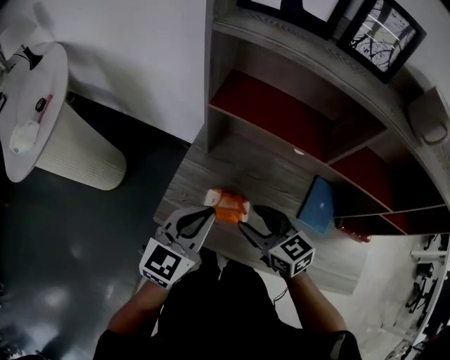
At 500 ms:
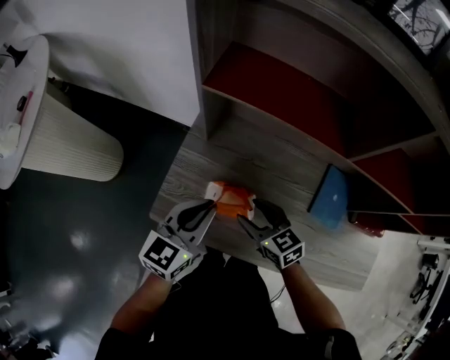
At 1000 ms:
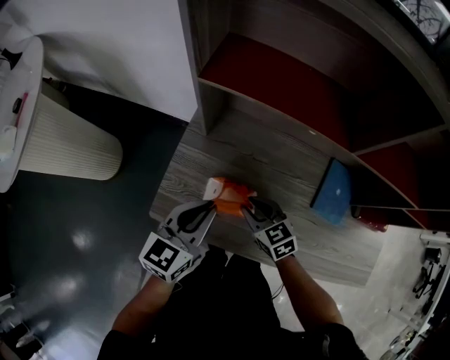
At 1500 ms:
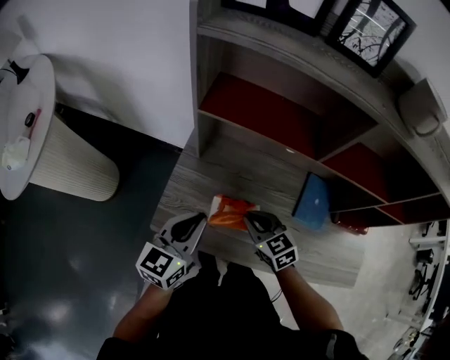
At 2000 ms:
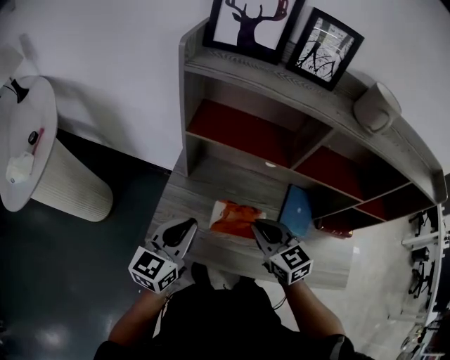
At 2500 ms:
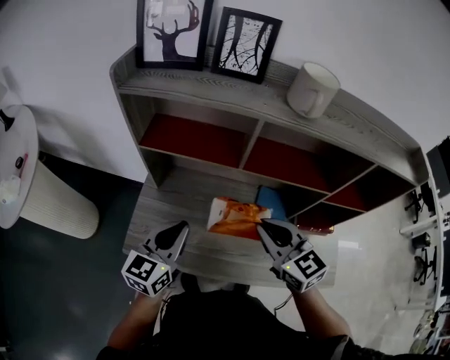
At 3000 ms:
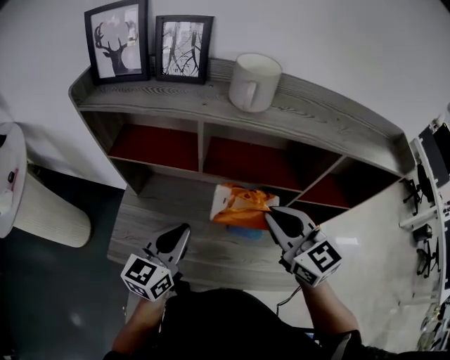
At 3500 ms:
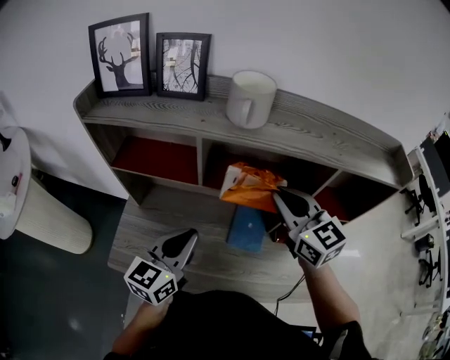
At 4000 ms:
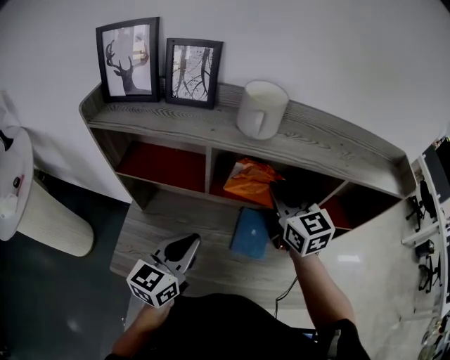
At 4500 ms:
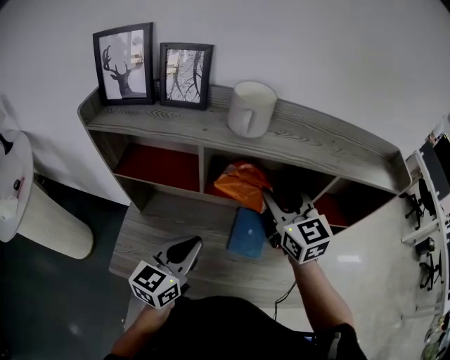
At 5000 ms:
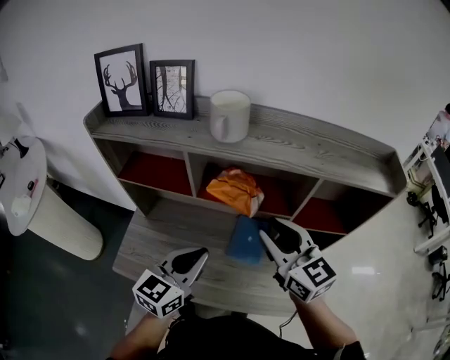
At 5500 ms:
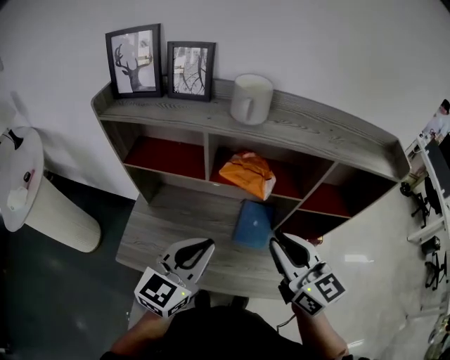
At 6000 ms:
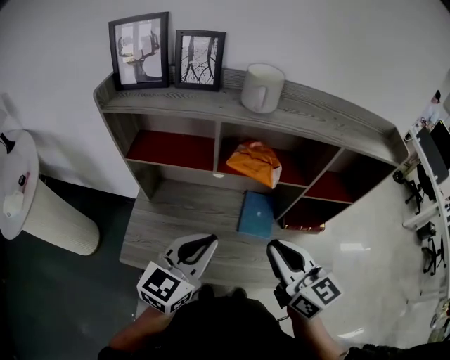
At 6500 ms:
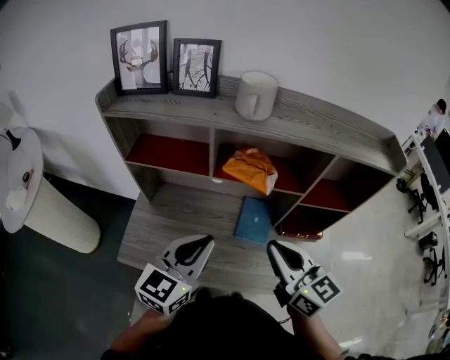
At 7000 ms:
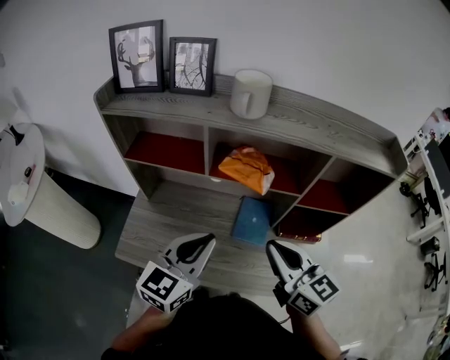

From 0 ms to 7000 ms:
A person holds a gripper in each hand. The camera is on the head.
From 0 ms to 2000 ms: The right gripper goes roughly 5 cm to the right, goes downward and returns, some 15 cm each way, and closes its fingers. The left gripper reaches approximately 10 cm downward, then returns.
From 2000 ms to 3500 ms: The right gripper travels to the right and upward by approximately 30 cm. Meanwhile the left gripper goes approximately 25 cm to the right.
From 3500 ms to 5000 ms: The right gripper is displaced backward by about 5 cm. The left gripper travels to the right by approximately 5 cm.
From 5000 ms to 7000 ms: The right gripper moves backward, approximately 10 cm, and closes.

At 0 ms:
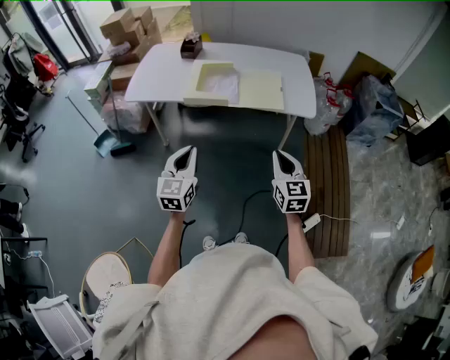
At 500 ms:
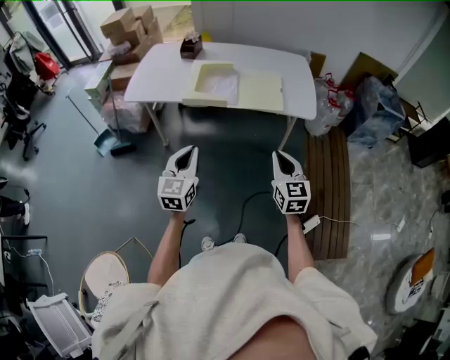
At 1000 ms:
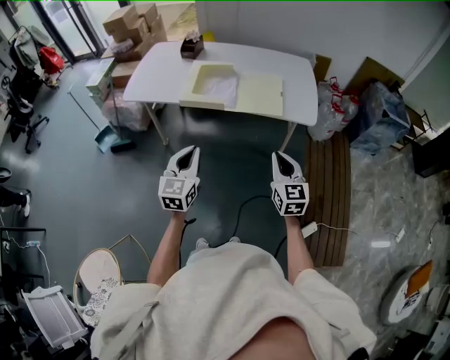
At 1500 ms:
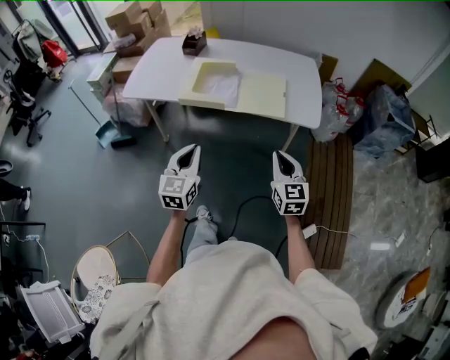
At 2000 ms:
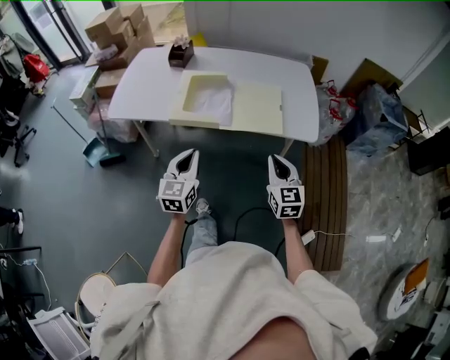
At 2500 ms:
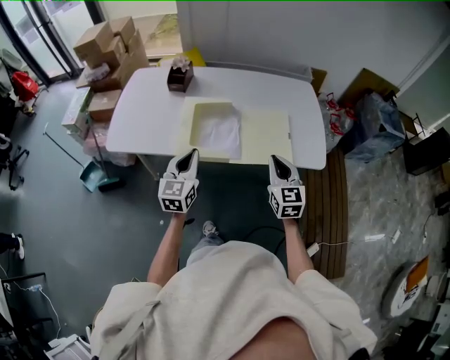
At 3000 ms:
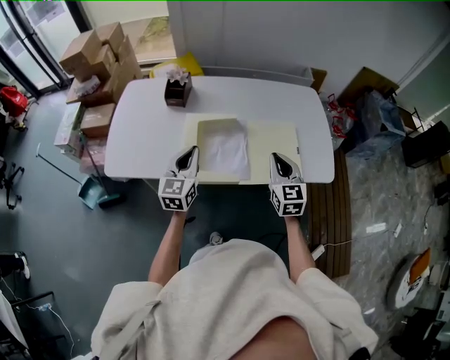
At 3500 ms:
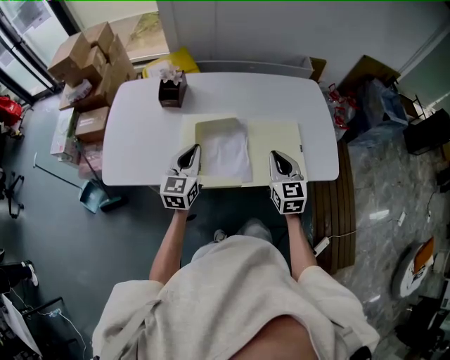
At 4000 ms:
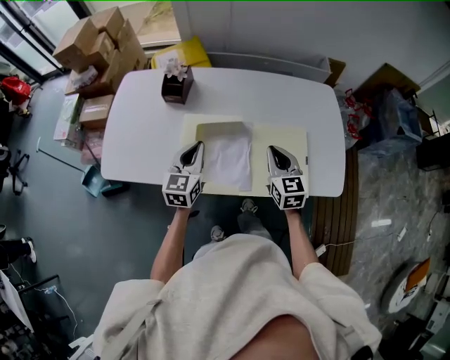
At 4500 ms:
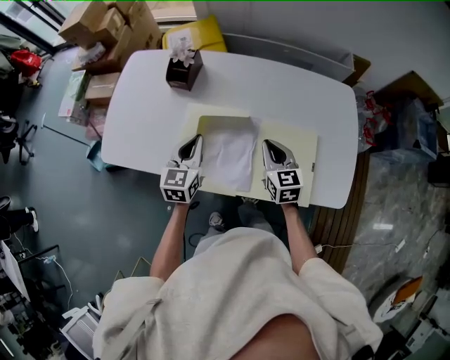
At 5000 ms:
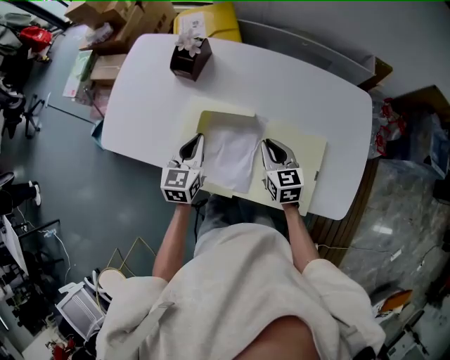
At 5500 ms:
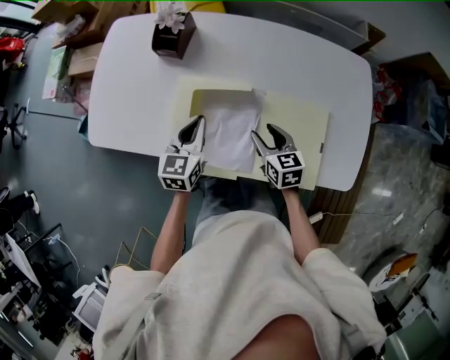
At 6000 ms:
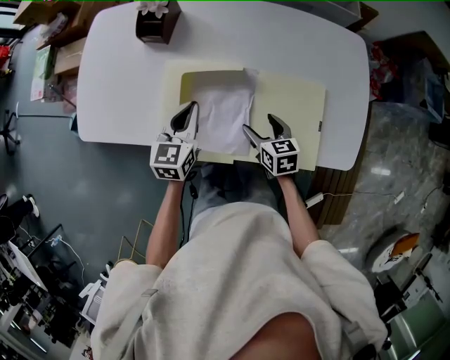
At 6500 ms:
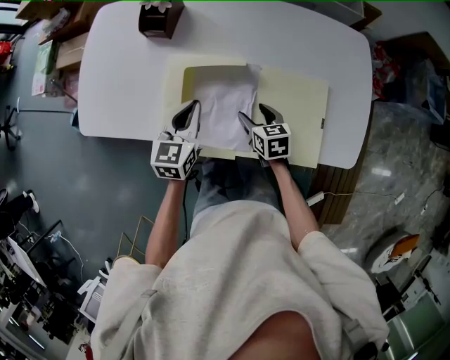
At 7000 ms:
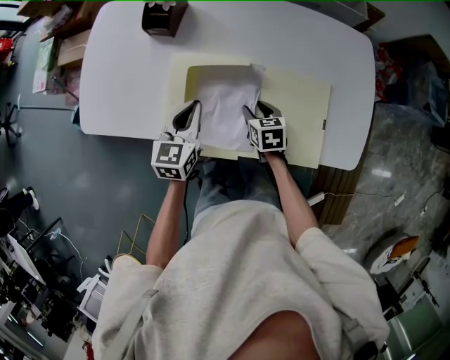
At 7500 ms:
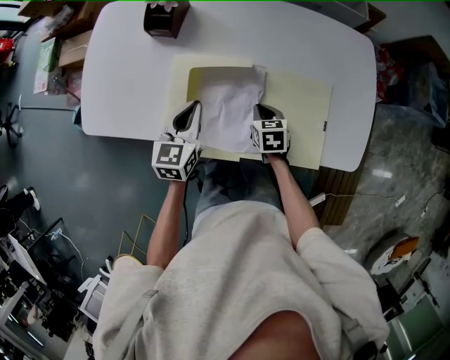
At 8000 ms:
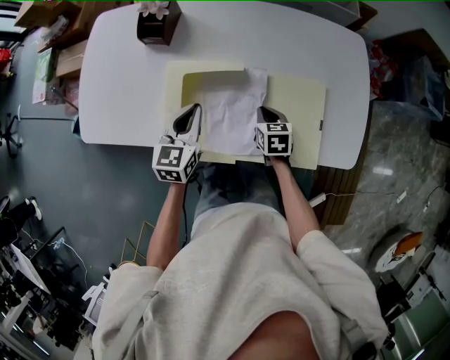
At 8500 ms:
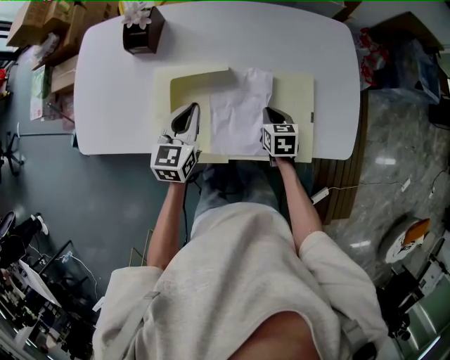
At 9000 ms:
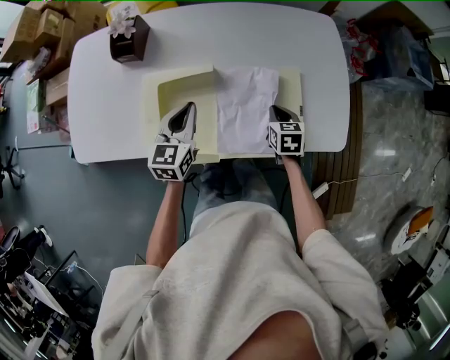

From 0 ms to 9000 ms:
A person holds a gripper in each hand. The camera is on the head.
From 0 ms to 2000 ms: Both grippers travel together forward, about 15 cm.
From 2000 ms to 4500 ms: Both grippers are carried forward, some 40 cm.
From 4500 ms to 7000 ms: The right gripper shifts roughly 15 cm downward, swivels about 30 degrees, and opens up, while the left gripper travels downward by some 5 cm.
From 7000 ms to 9000 ms: The left gripper heads to the right, covering about 5 cm, while the right gripper heads to the right, covering some 15 cm, and closes its fingers.

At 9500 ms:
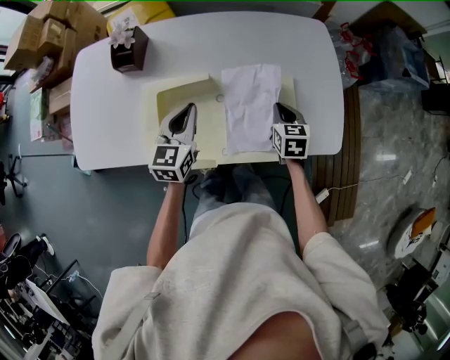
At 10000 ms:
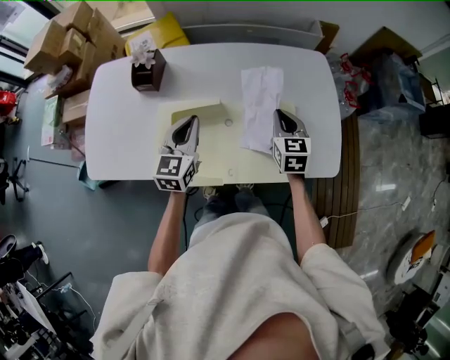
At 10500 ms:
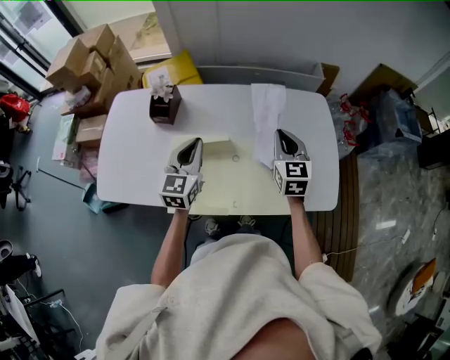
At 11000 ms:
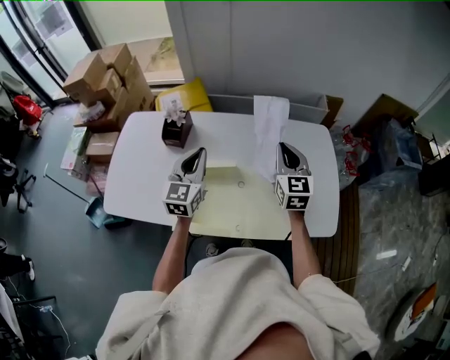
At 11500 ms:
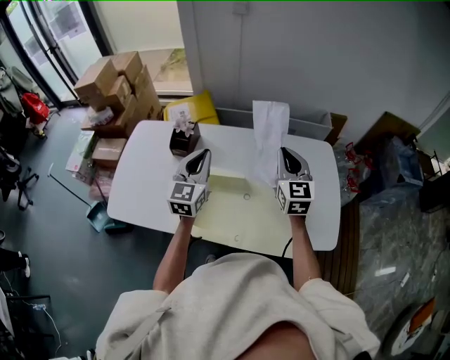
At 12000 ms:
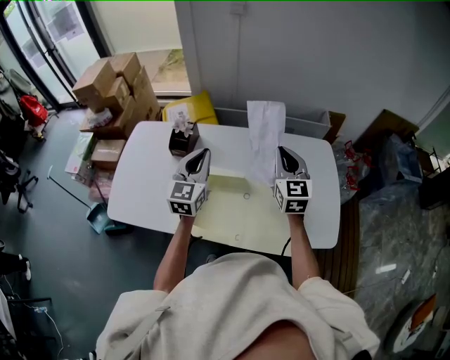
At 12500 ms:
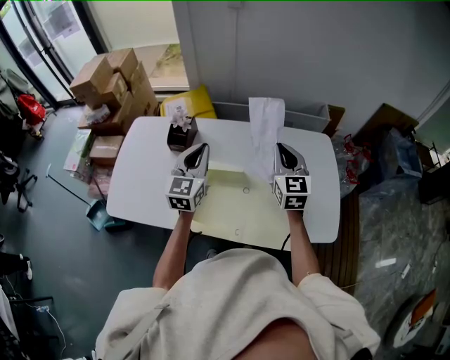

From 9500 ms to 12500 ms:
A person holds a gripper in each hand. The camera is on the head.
From 9500 ms to 11000 ms: The right gripper goes some 25 cm upward, and points its fingers roughly 30 degrees further upward; the left gripper is displaced upward and to the left by about 15 cm.
From 11000 ms to 12500 ms: There are only small adjustments of the grippers.

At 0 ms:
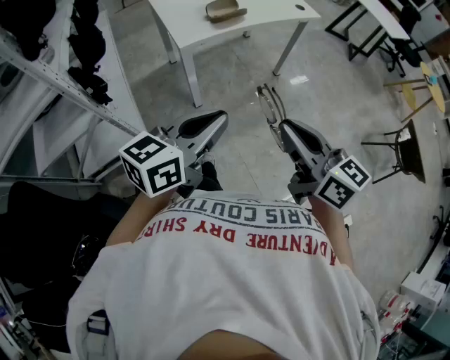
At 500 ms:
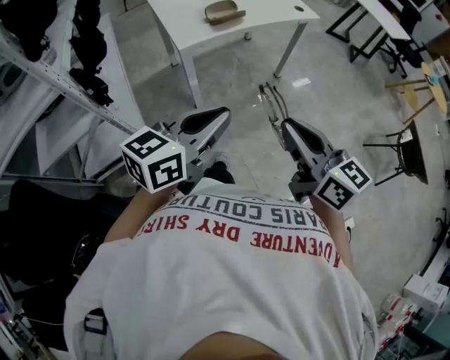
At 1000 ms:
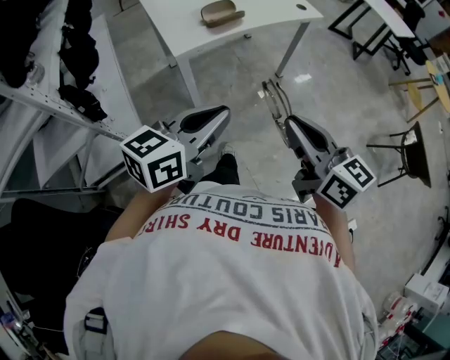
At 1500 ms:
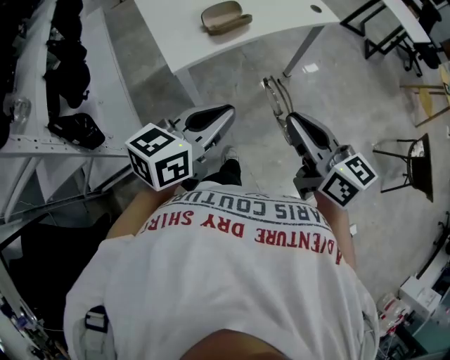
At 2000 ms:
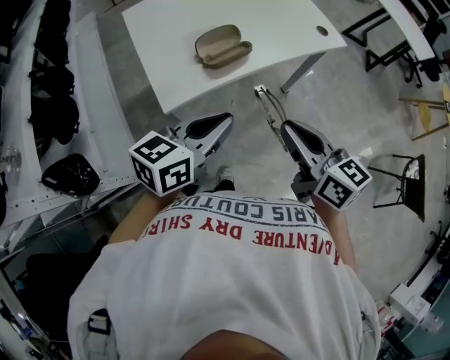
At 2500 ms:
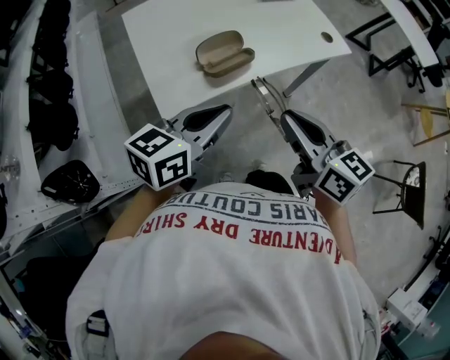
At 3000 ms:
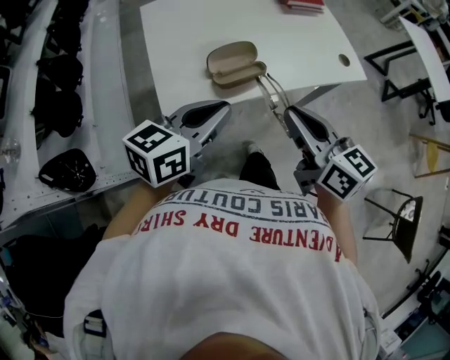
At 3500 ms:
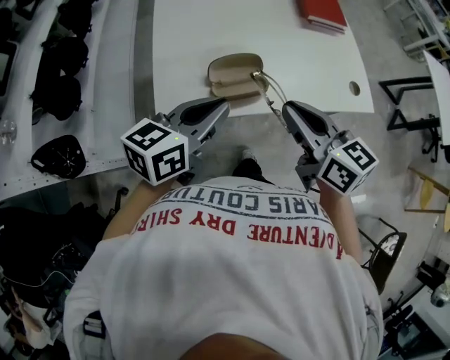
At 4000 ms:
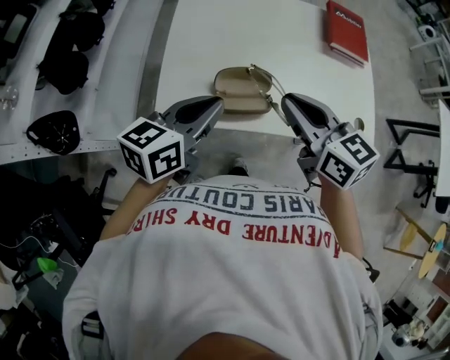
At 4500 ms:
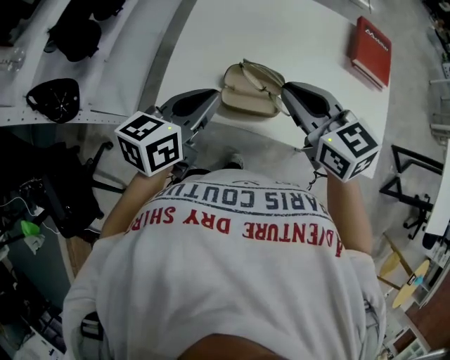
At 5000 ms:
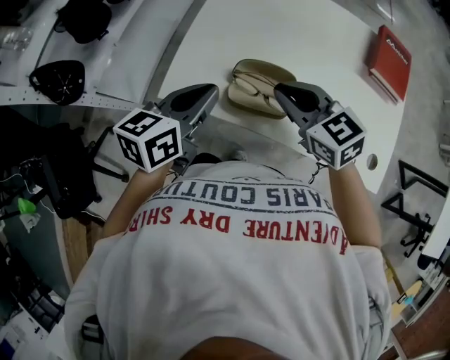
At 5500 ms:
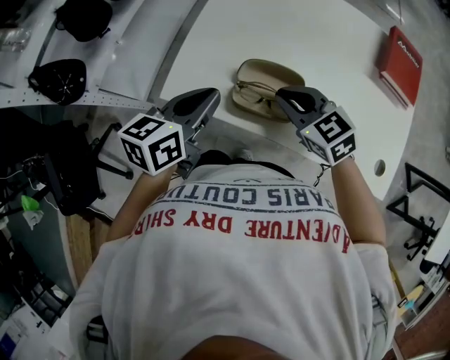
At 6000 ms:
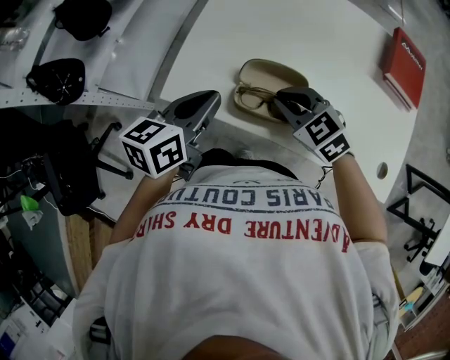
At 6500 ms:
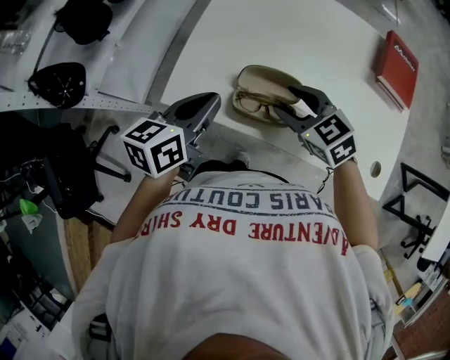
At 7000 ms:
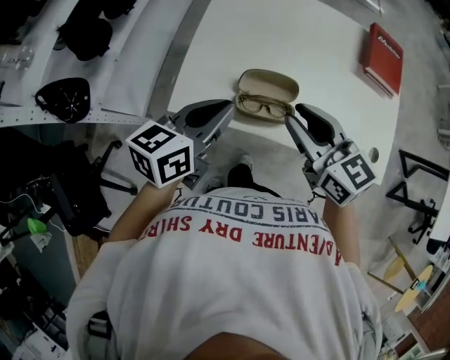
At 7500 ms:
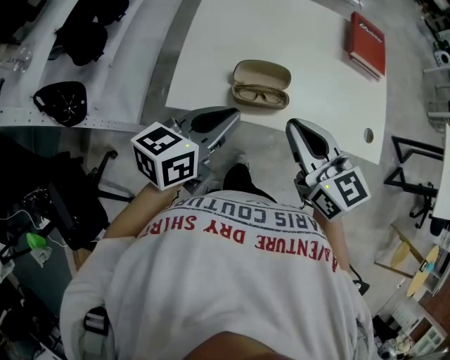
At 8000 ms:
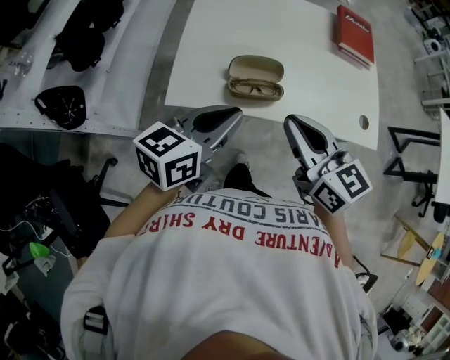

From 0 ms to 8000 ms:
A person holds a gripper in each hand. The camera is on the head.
From 0 ms to 2000 ms: Both grippers travel together forward, about 35 cm.
From 2000 ms to 4000 ms: The right gripper ends up approximately 25 cm from where it was, and swivels about 40 degrees, while the left gripper changes place by some 20 cm, and rotates approximately 30 degrees.
From 4000 ms to 6000 ms: The left gripper moves downward, about 10 cm, and rotates some 20 degrees, while the right gripper moves downward, roughly 20 cm, and swivels roughly 50 degrees.
From 6000 ms to 8000 ms: The left gripper travels upward by approximately 10 cm, and swivels some 30 degrees; the right gripper heads upward, covering roughly 20 cm, rotates approximately 50 degrees, and opens, then closes again.
